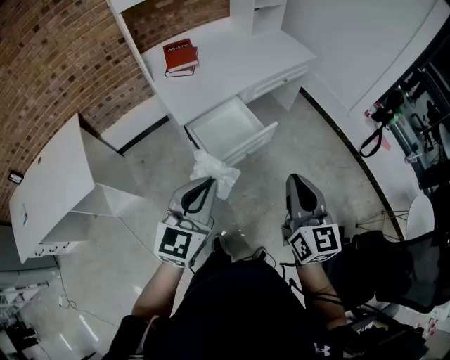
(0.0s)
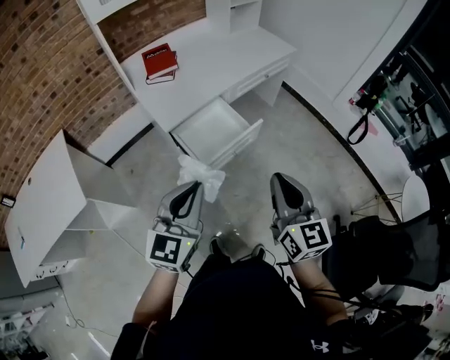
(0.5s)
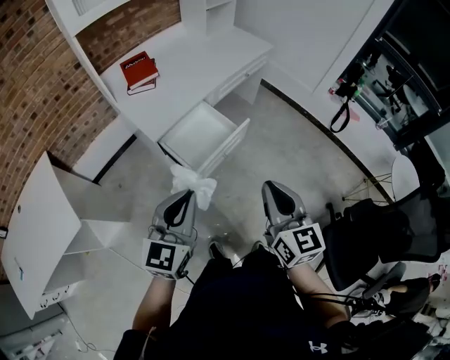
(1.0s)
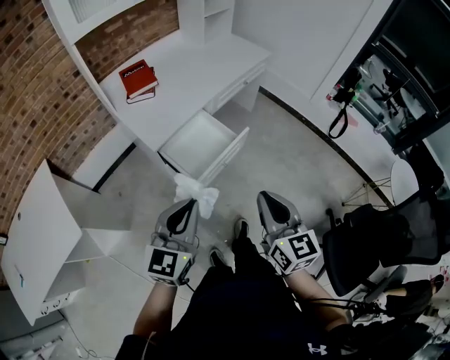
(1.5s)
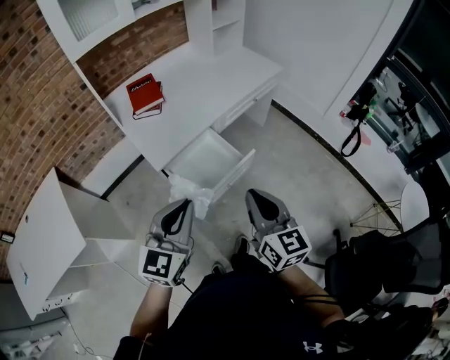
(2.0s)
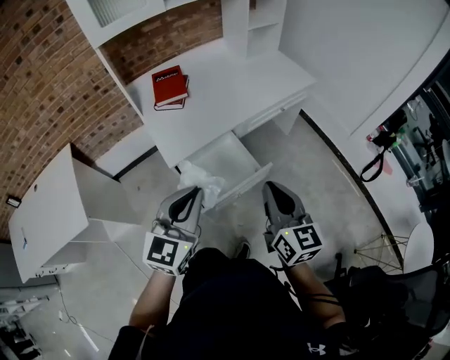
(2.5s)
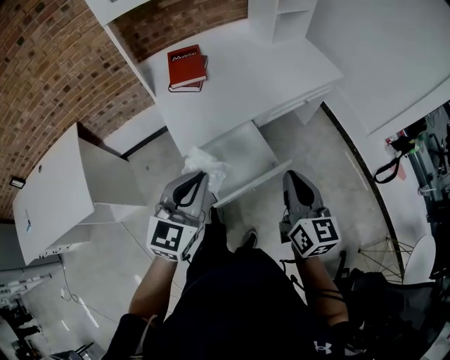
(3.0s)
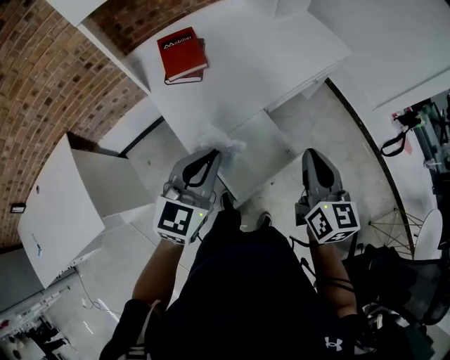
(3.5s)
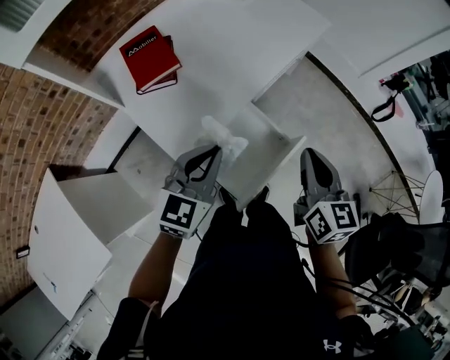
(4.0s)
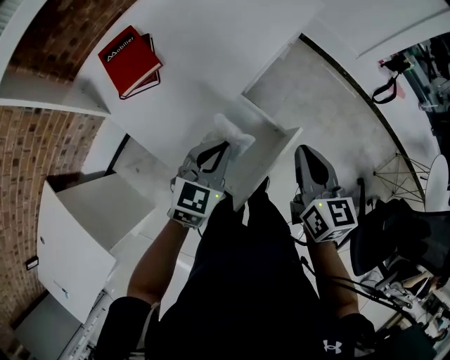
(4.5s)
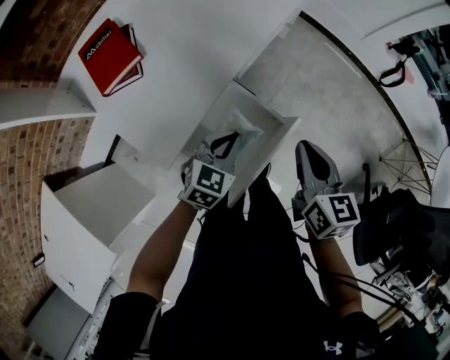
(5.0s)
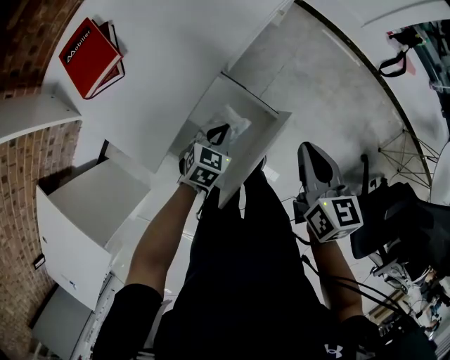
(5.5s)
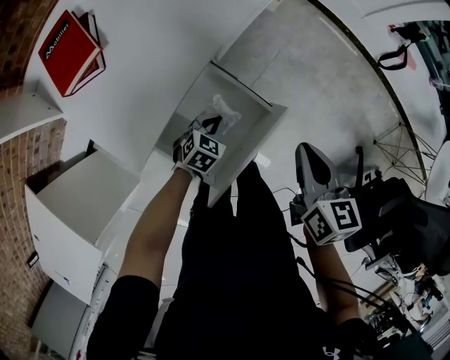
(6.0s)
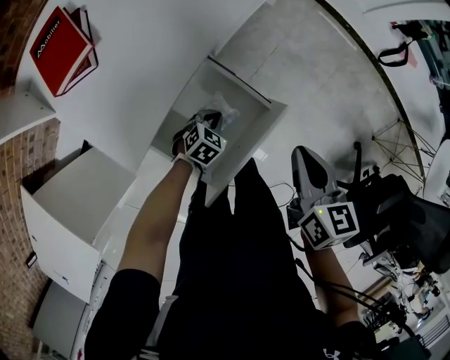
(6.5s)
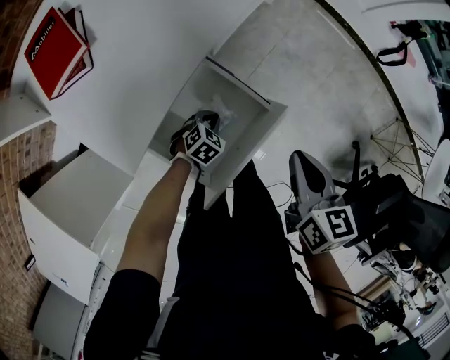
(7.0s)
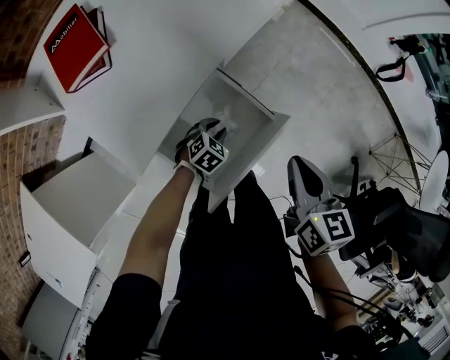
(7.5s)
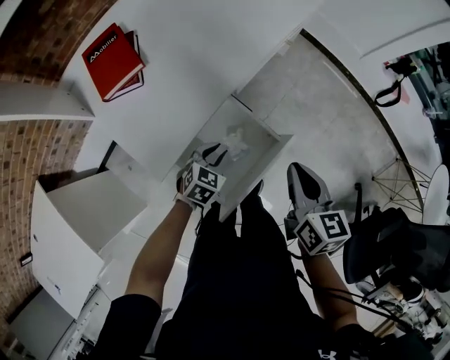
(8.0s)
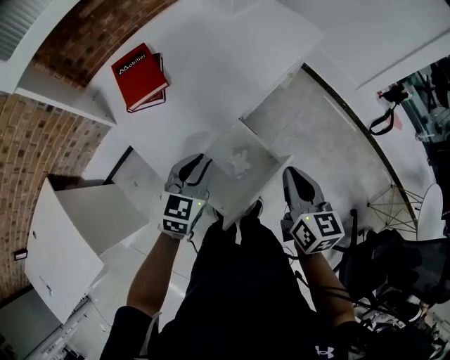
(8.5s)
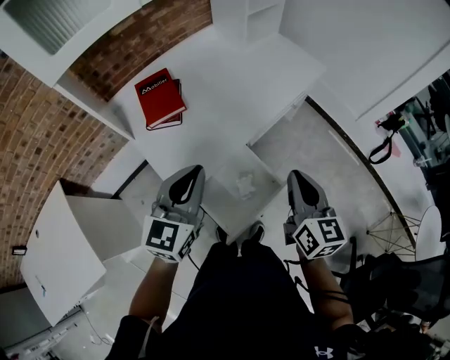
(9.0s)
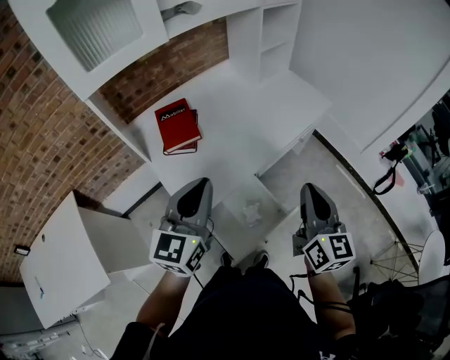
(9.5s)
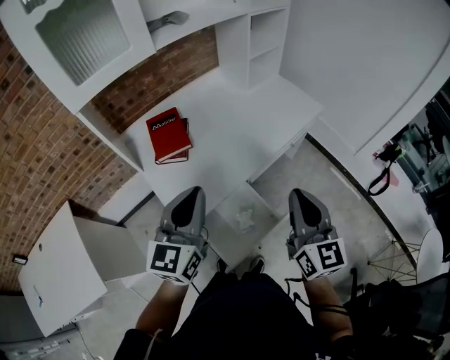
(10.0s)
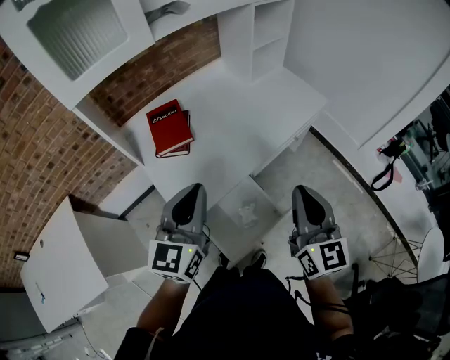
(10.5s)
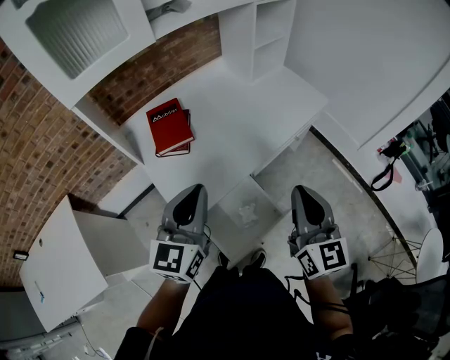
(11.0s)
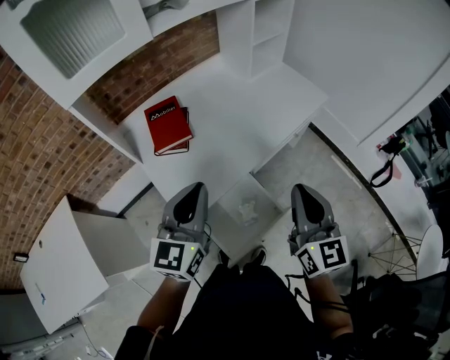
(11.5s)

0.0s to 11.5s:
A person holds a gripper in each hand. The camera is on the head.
0.0s to 2.0s: The right gripper shifts approximately 10 cm forward and to the left, while the left gripper heads forward, covering some 10 cm.
2.0s to 4.0s: The grippers both shift forward by roughly 25 cm. The right gripper rotates some 20 degrees.
4.0s to 6.0s: The right gripper heads downward and to the right, covering approximately 15 cm, and changes its angle by about 20 degrees. Meanwhile the left gripper moves downward, approximately 35 cm, and tilts its fingers about 40 degrees downward.
6.0s to 7.5s: The left gripper opens.
7.5s to 9.5s: The right gripper goes roughly 25 cm upward, and points its fingers approximately 30 degrees further upward, while the left gripper goes about 60 cm upward, points its fingers roughly 60 degrees further upward, and closes up.
9.5s to 11.5s: The grippers make only small movements.

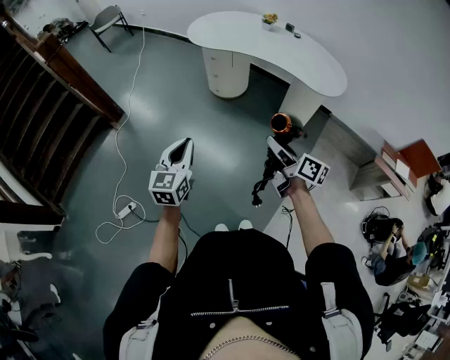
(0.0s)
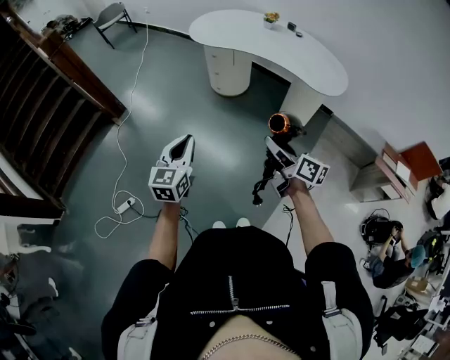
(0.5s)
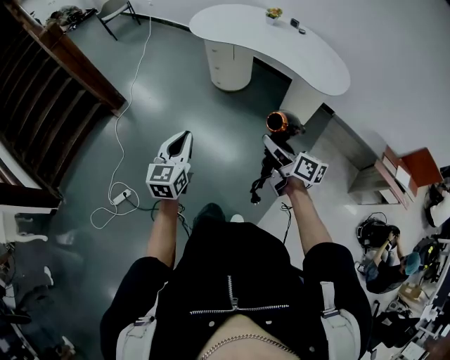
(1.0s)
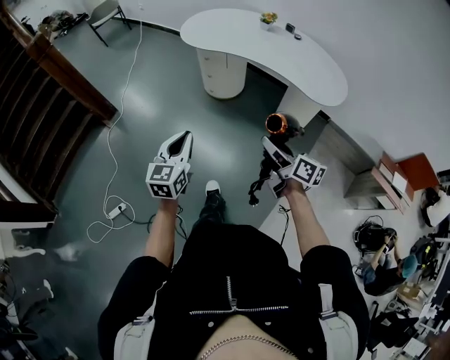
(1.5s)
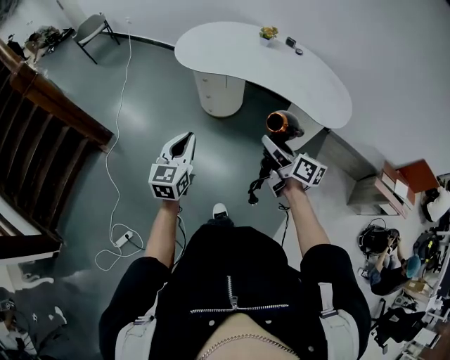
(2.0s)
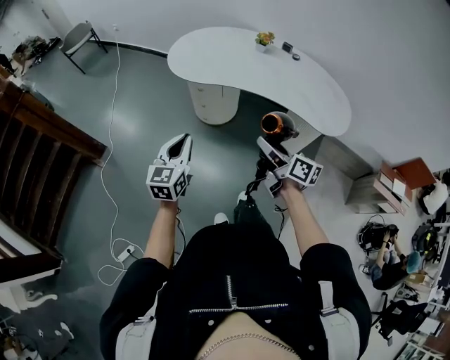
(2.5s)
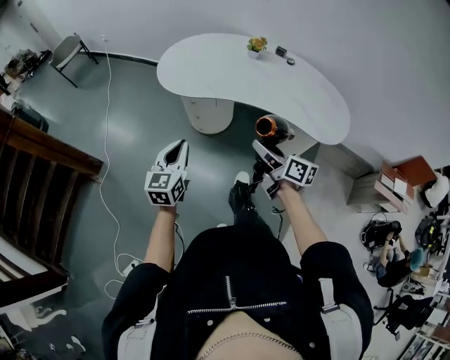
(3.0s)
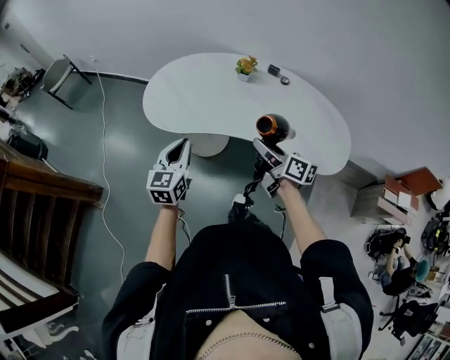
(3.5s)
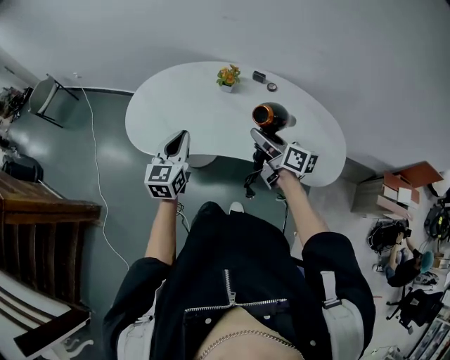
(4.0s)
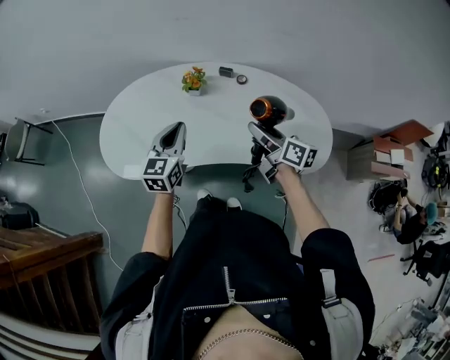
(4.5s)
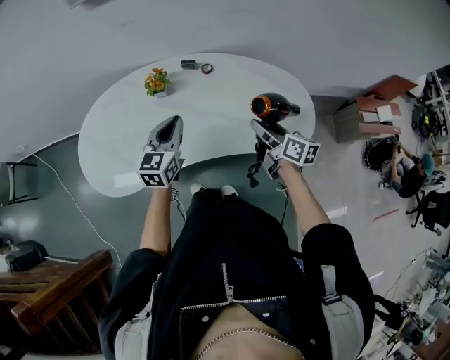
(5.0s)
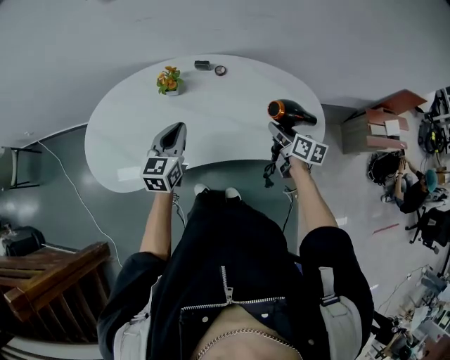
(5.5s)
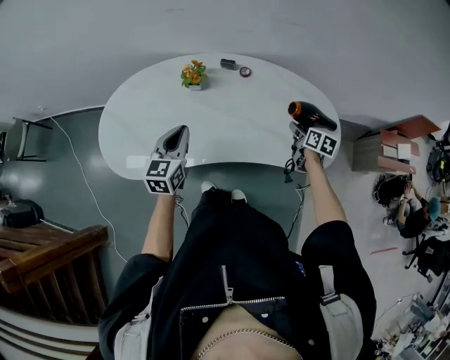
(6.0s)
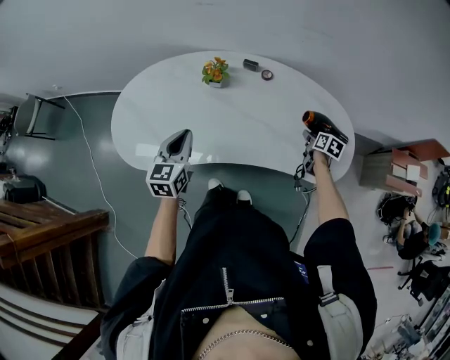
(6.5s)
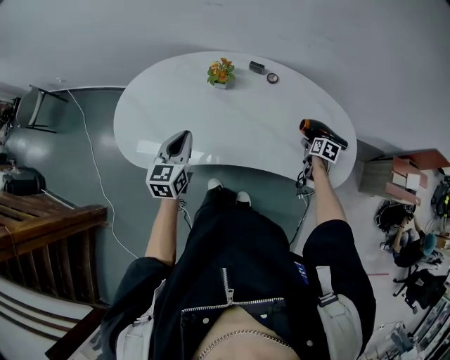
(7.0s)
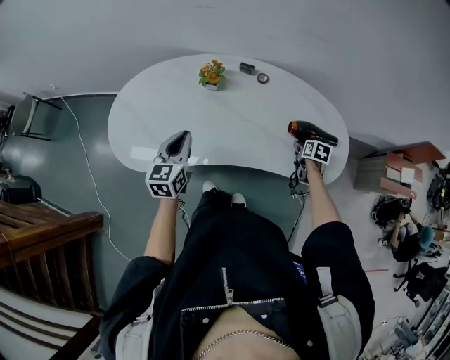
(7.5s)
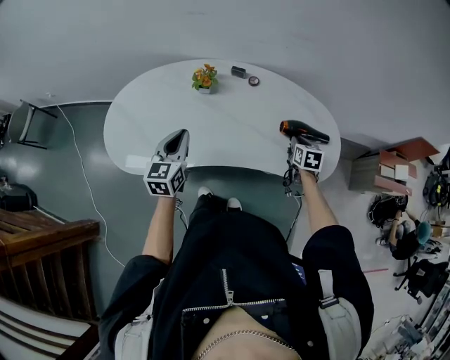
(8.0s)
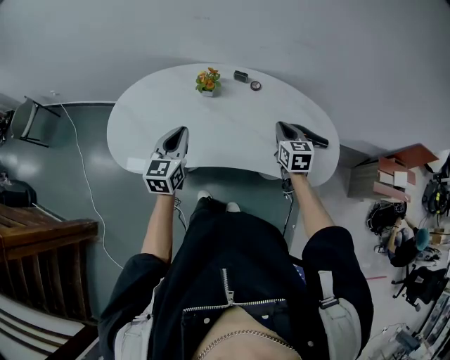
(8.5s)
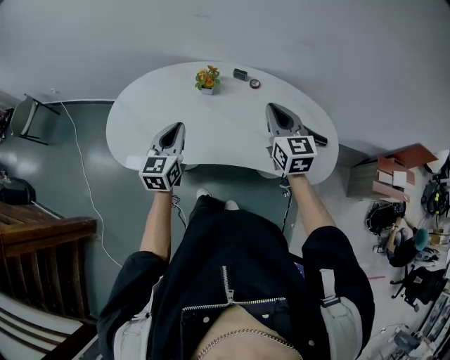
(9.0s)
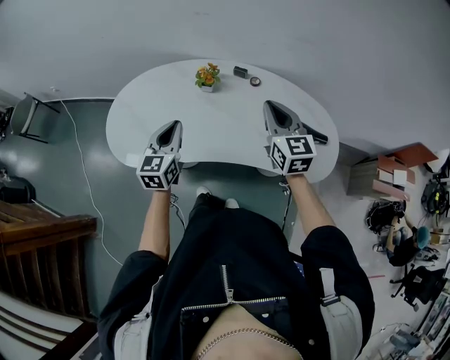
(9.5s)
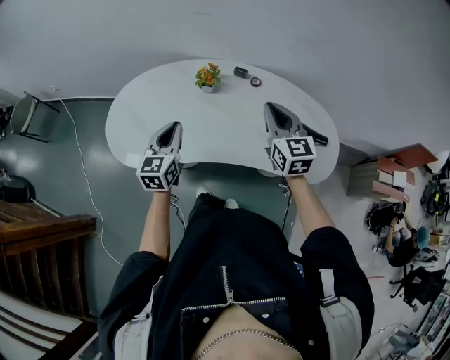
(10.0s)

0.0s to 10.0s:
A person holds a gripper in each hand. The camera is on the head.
0.0s to 2.0s: The grippers both shift forward by roughly 25 cm.
2.0s to 4.0s: Both grippers are carried forward, about 50 cm.
4.0s to 6.0s: The right gripper moves some 30 cm, and tips its fingers downward by approximately 30 degrees. The left gripper ends up approximately 15 cm from where it was.
6.0s to 8.0s: The right gripper reaches some 10 cm downward, then returns, changes its angle by roughly 30 degrees, and closes up.
8.0s to 10.0s: The right gripper is displaced upward and to the left by roughly 30 cm, and points its fingers roughly 40 degrees further upward.

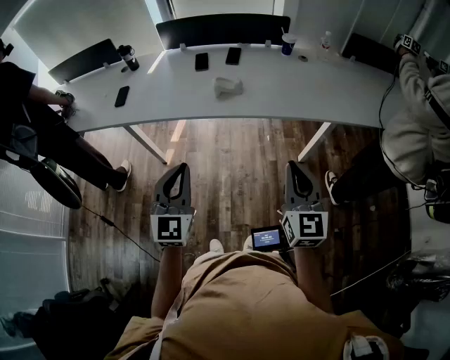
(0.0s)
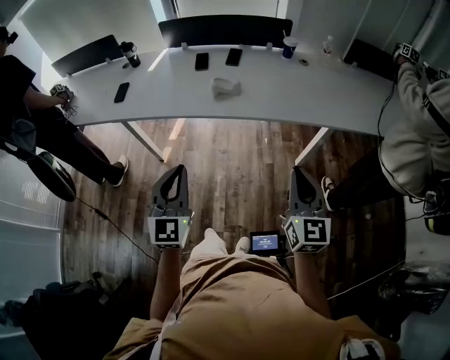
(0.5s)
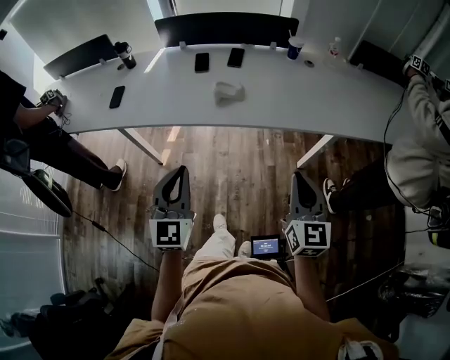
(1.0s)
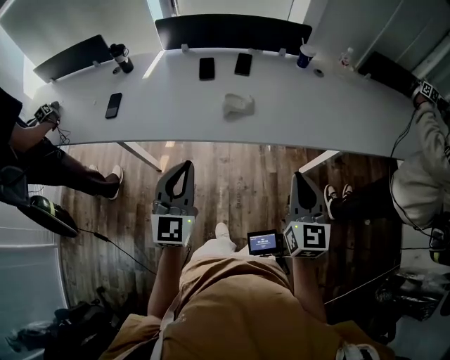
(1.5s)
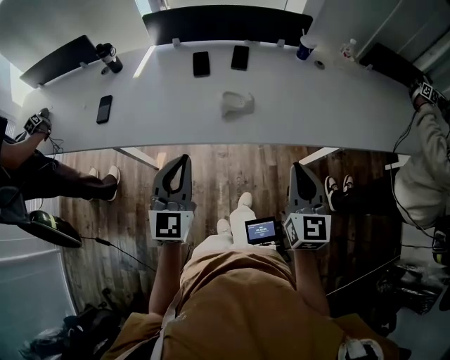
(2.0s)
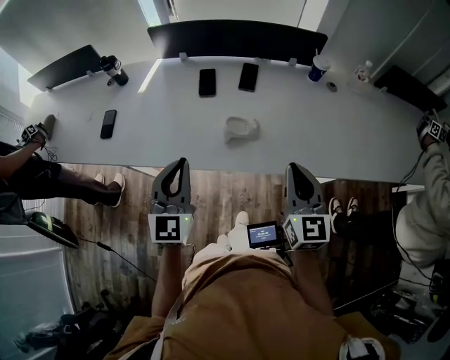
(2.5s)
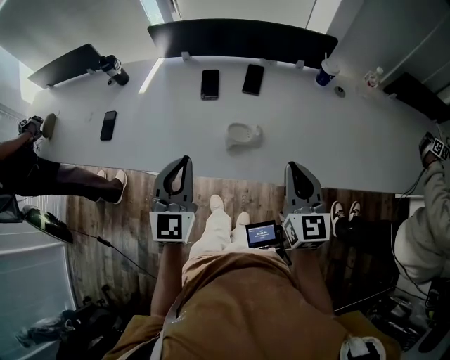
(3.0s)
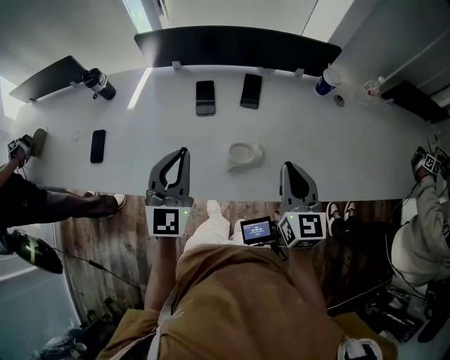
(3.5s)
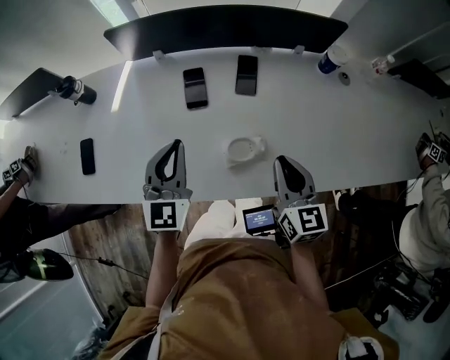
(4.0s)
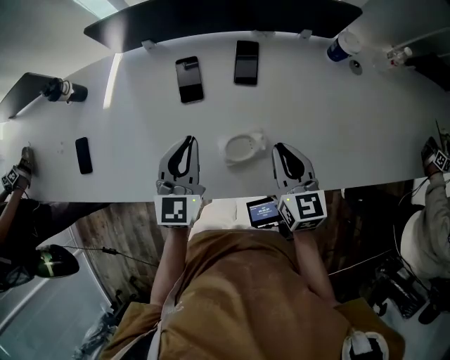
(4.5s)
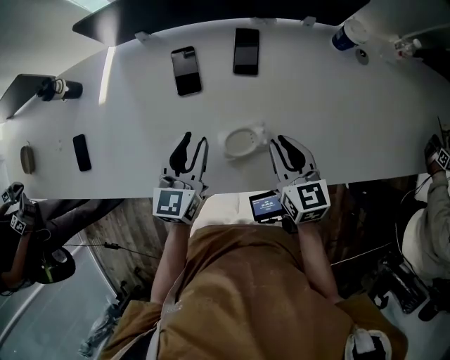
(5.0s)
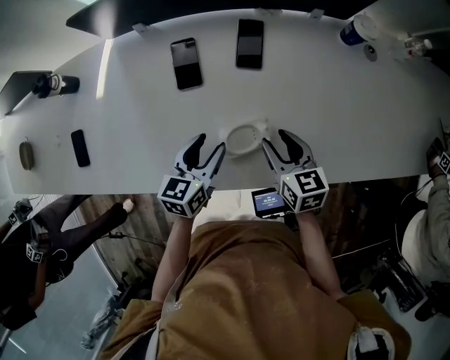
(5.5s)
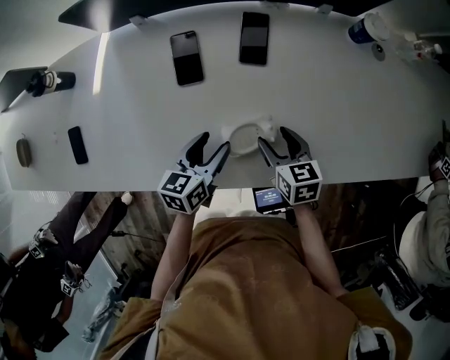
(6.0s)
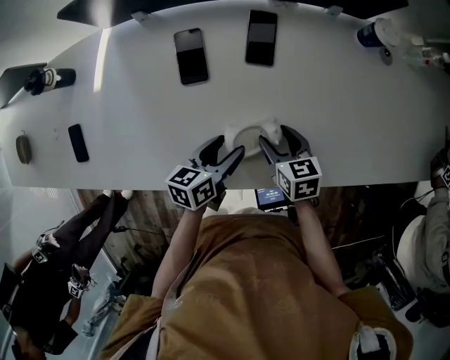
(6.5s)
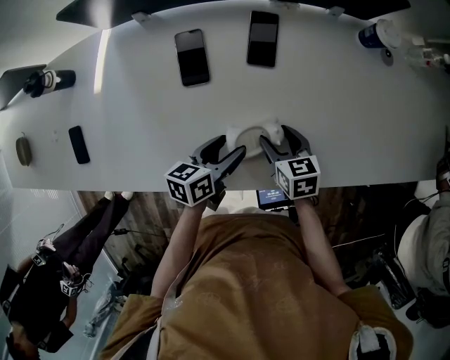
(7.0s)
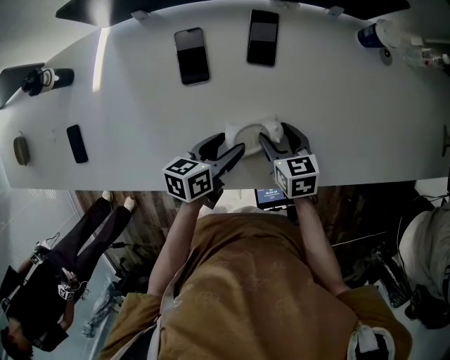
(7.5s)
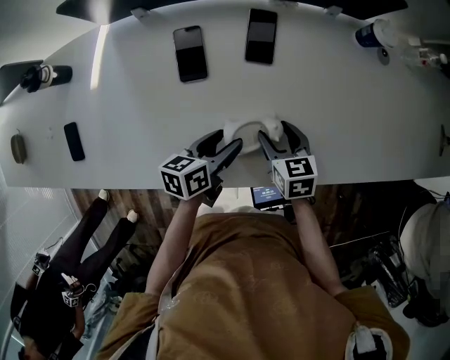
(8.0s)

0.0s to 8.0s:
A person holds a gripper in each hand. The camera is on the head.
0.0s to 2.0s: The two grippers go roughly 20 cm forward.
2.0s to 4.0s: Both grippers move forward, some 30 cm.
4.0s to 6.0s: The left gripper goes roughly 20 cm downward and to the right, rotates about 50 degrees, and opens its fingers. Meanwhile the right gripper is displaced downward by about 20 cm, rotates approximately 30 degrees, and opens up.
6.0s to 8.0s: The grippers stay close to where they were, moving slightly.
